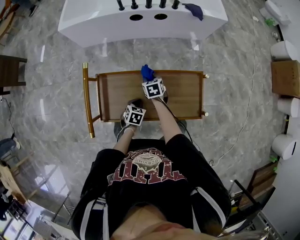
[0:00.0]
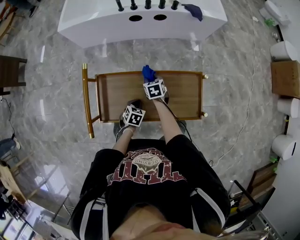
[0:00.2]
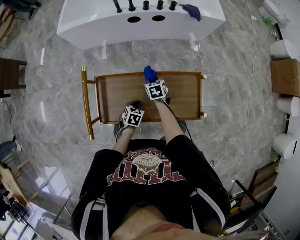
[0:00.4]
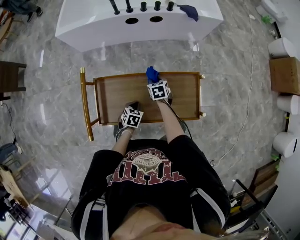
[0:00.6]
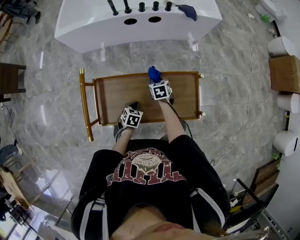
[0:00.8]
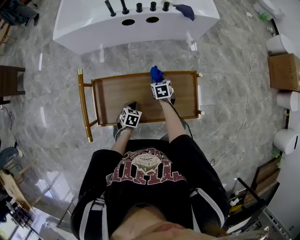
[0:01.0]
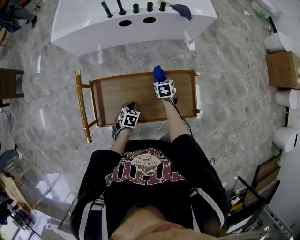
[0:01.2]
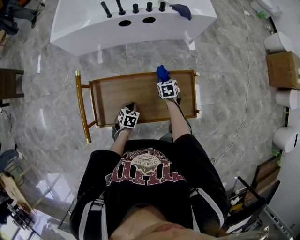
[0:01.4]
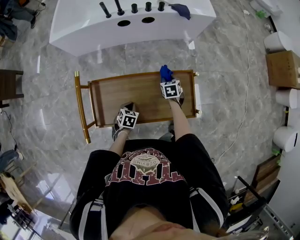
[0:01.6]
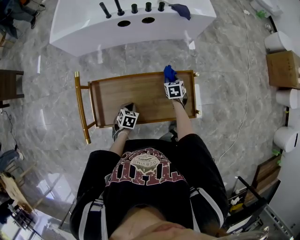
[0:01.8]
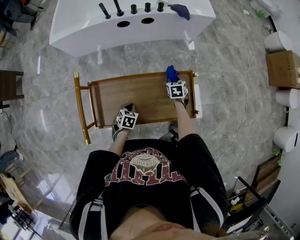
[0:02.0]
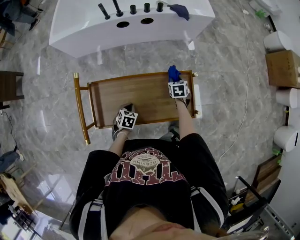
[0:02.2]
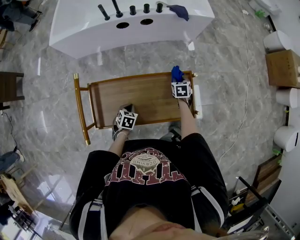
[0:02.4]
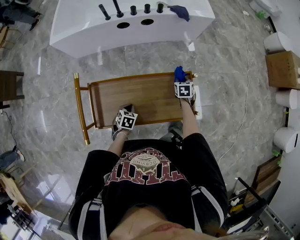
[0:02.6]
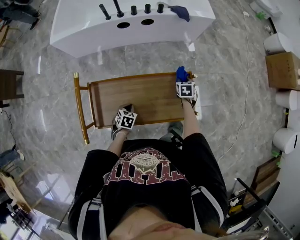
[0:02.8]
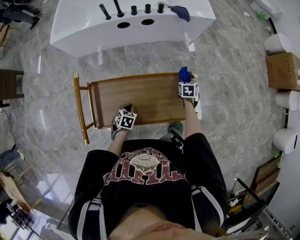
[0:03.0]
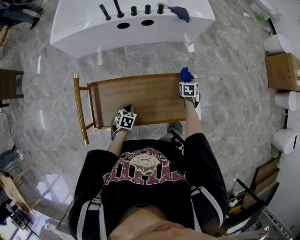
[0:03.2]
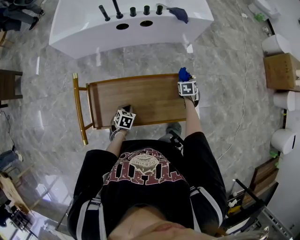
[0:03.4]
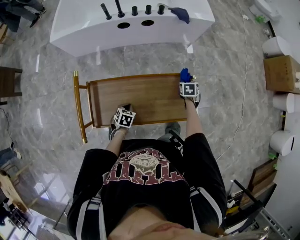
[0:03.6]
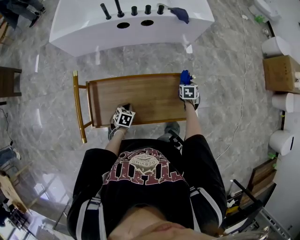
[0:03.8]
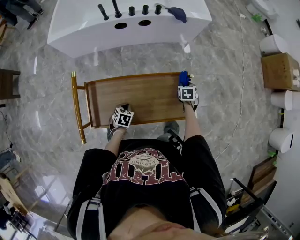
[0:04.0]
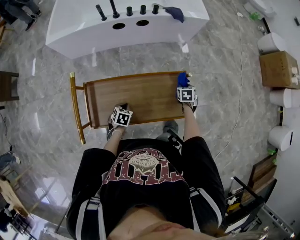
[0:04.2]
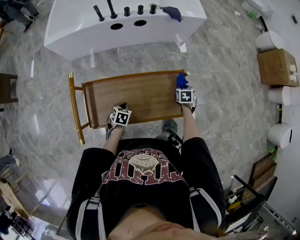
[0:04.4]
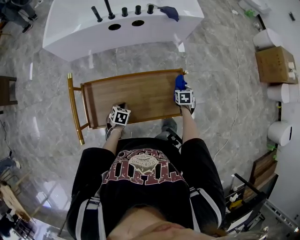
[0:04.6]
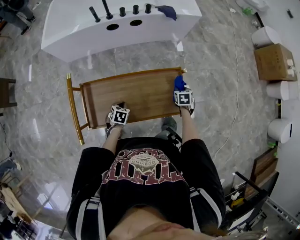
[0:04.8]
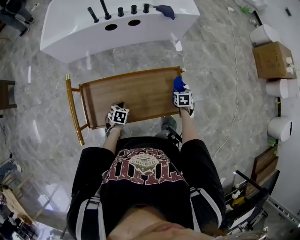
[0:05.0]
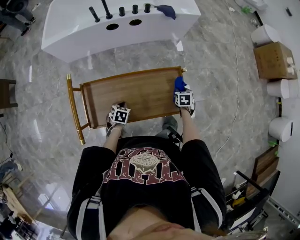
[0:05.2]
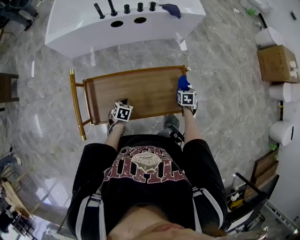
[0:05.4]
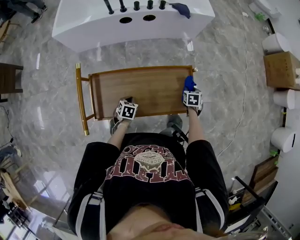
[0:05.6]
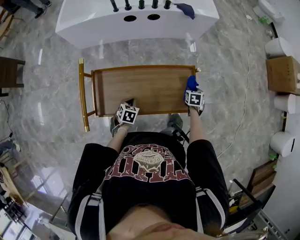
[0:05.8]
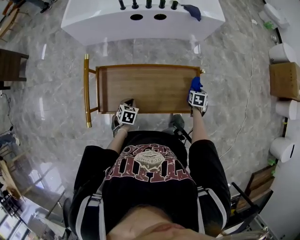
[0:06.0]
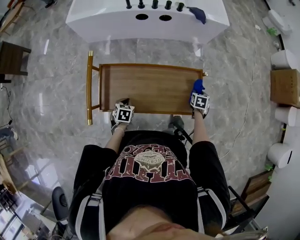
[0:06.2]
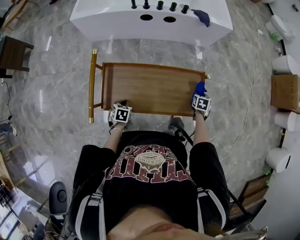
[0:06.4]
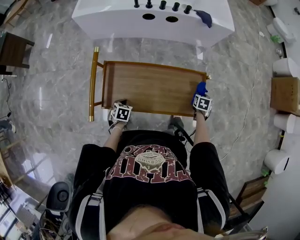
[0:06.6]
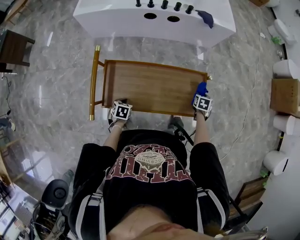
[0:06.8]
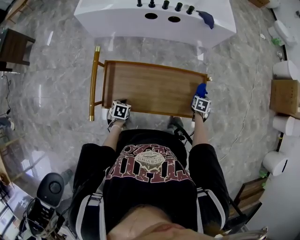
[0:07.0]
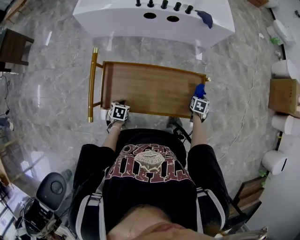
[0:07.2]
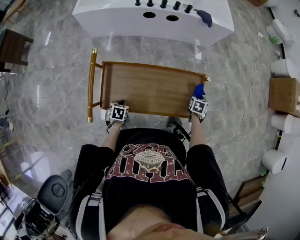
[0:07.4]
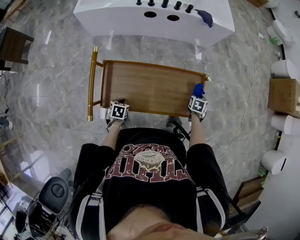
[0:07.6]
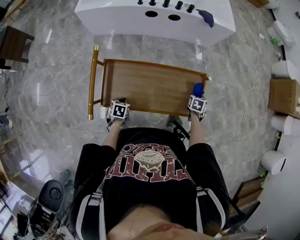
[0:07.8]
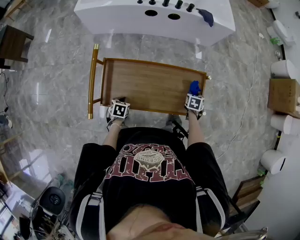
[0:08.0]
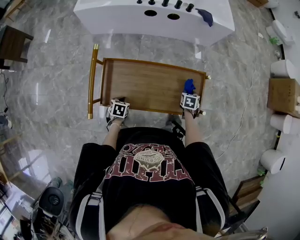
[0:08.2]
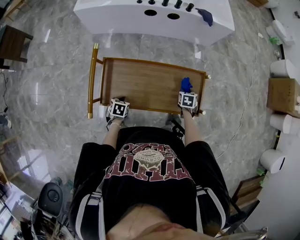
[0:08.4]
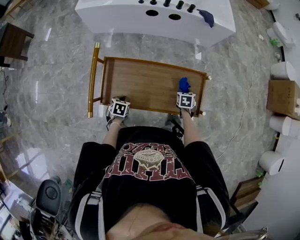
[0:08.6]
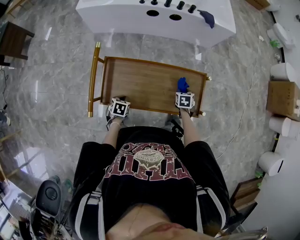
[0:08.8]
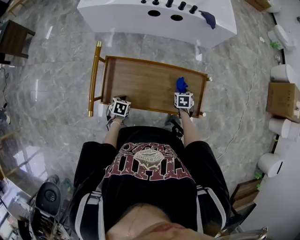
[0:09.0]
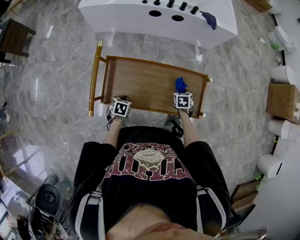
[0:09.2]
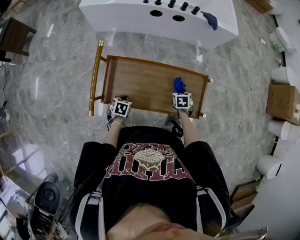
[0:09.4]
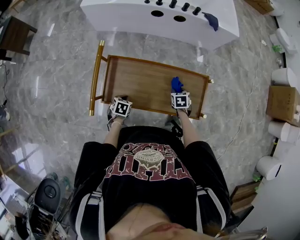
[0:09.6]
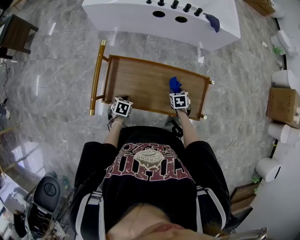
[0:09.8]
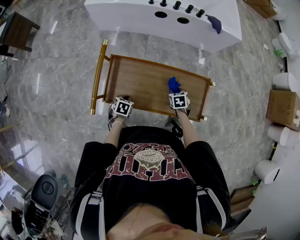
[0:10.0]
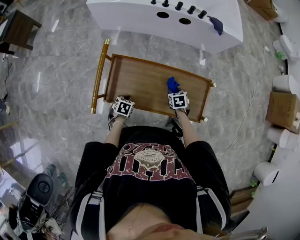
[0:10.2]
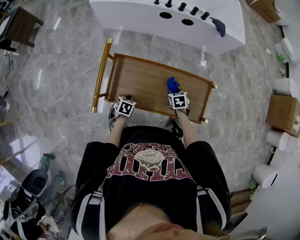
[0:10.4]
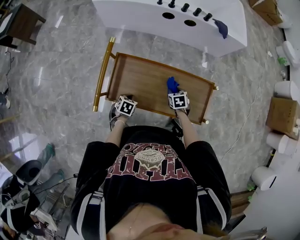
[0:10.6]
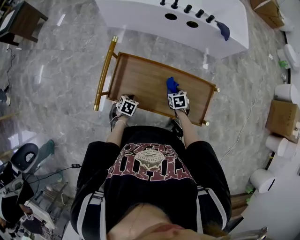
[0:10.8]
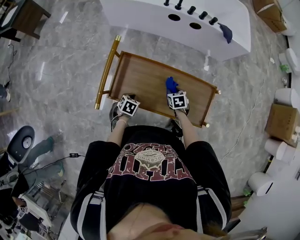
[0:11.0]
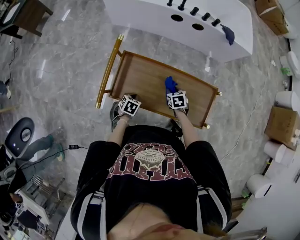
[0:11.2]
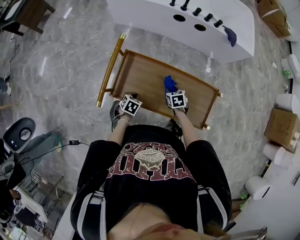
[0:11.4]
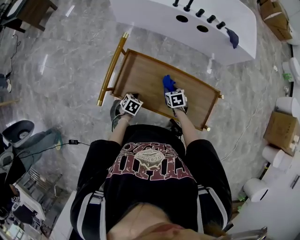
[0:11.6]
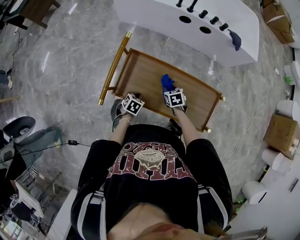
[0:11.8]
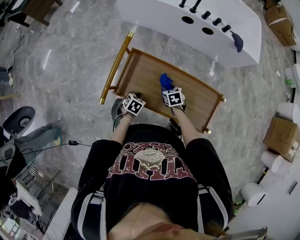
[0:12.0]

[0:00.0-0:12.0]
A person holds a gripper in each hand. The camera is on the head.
0:00.0 to 0:01.6: The right gripper shifts some 15 cm to the right.
0:01.6 to 0:03.0: The right gripper heads to the right, covering some 10 cm.
0:03.0 to 0:04.4: The right gripper ends up some 5 cm from where it was.
0:04.4 to 0:06.0: The left gripper goes roughly 5 cm backward.
0:06.0 to 0:07.6: The left gripper is displaced to the left and backward by roughly 10 cm.
0:07.6 to 0:09.0: The right gripper moves to the left, some 15 cm.
0:09.0 to 0:10.4: The right gripper is displaced to the left by about 10 cm.
0:10.4 to 0:12.0: The right gripper goes some 10 cm to the left.

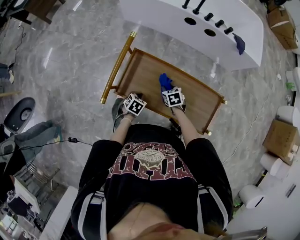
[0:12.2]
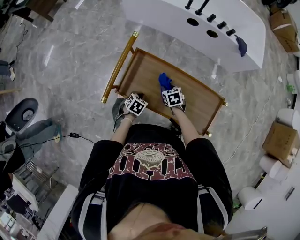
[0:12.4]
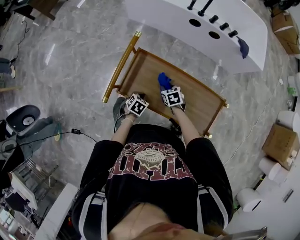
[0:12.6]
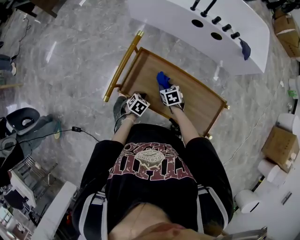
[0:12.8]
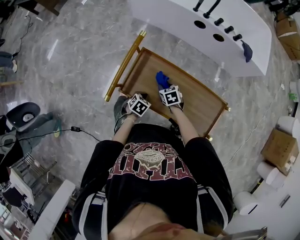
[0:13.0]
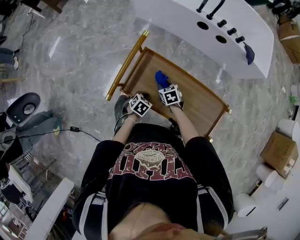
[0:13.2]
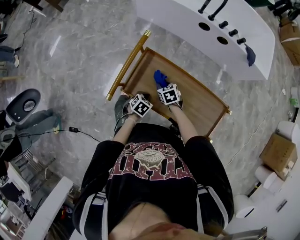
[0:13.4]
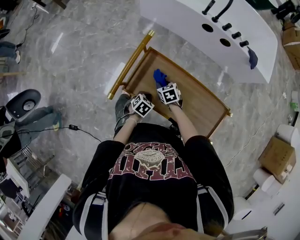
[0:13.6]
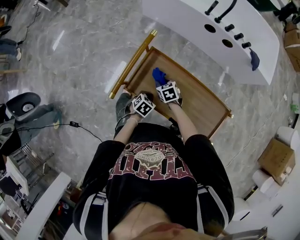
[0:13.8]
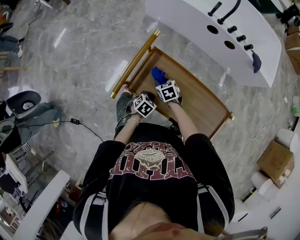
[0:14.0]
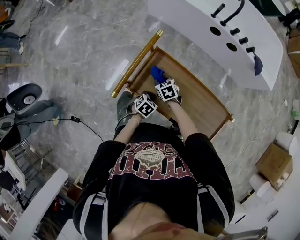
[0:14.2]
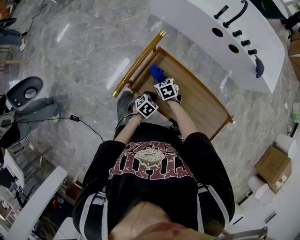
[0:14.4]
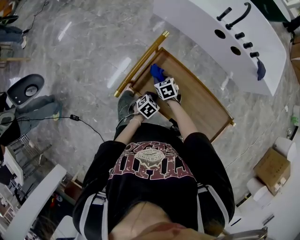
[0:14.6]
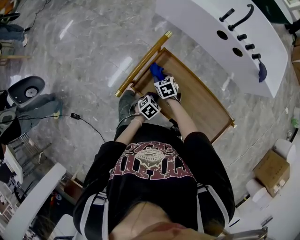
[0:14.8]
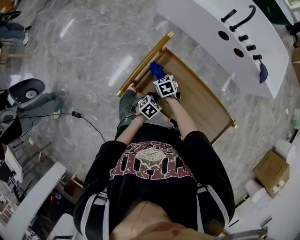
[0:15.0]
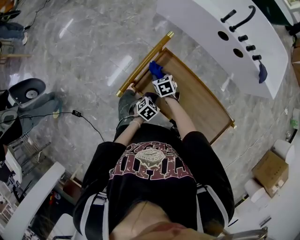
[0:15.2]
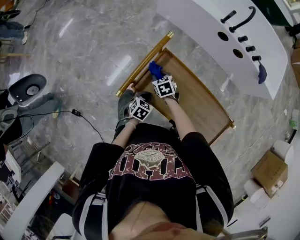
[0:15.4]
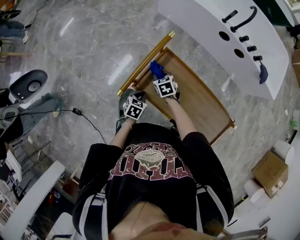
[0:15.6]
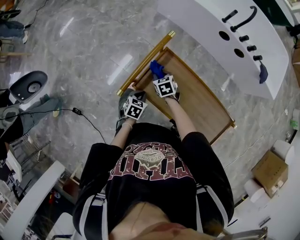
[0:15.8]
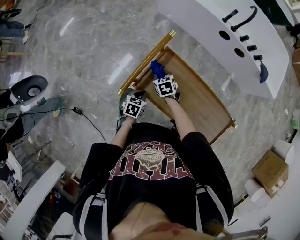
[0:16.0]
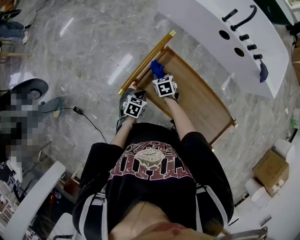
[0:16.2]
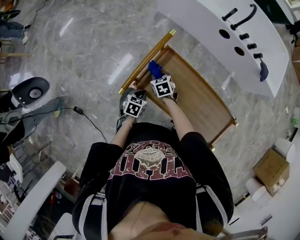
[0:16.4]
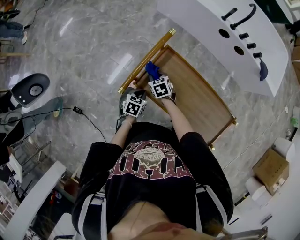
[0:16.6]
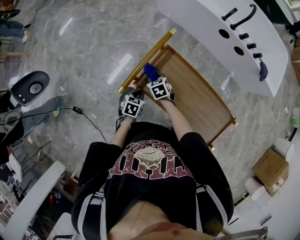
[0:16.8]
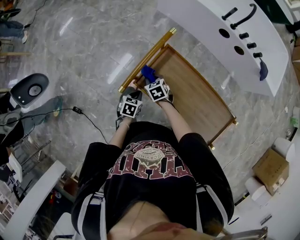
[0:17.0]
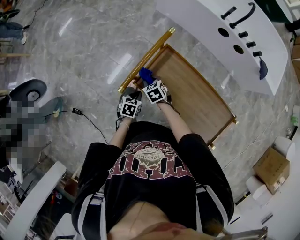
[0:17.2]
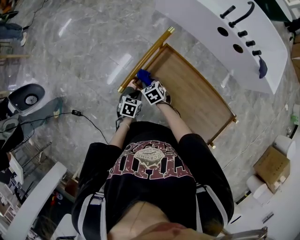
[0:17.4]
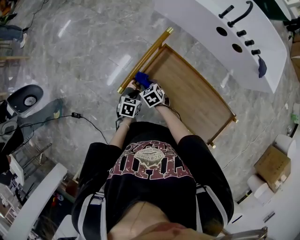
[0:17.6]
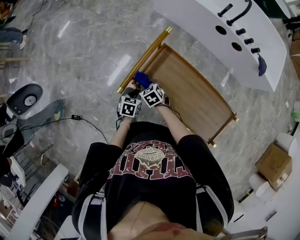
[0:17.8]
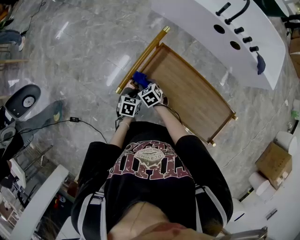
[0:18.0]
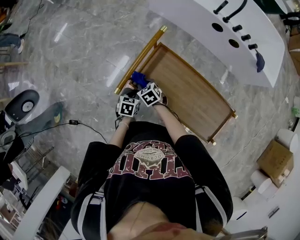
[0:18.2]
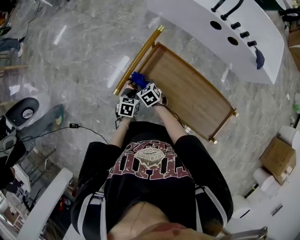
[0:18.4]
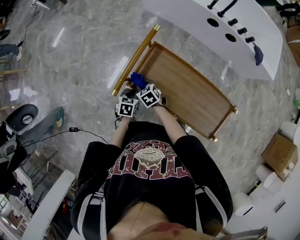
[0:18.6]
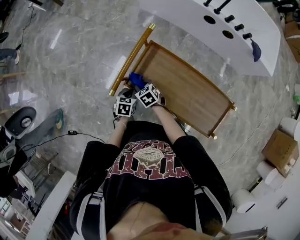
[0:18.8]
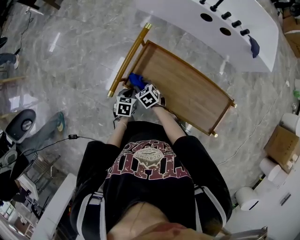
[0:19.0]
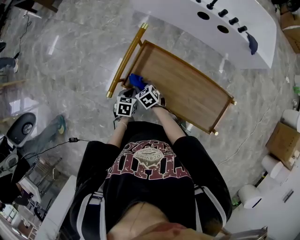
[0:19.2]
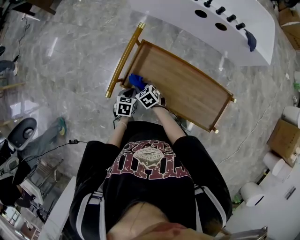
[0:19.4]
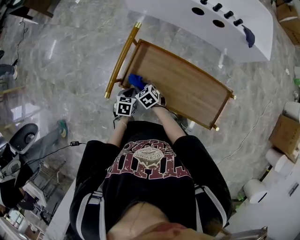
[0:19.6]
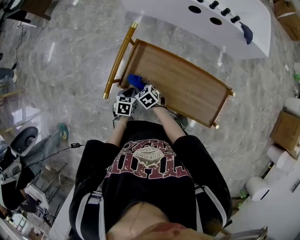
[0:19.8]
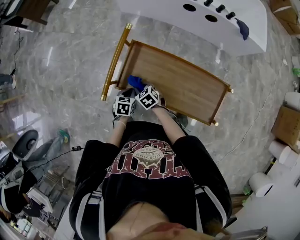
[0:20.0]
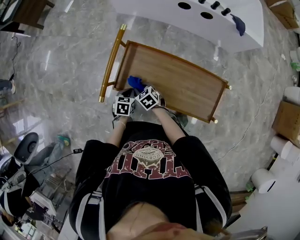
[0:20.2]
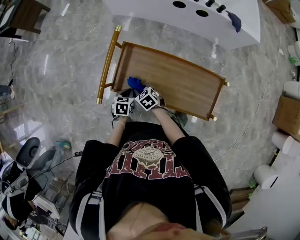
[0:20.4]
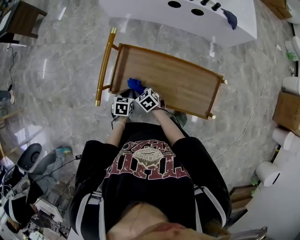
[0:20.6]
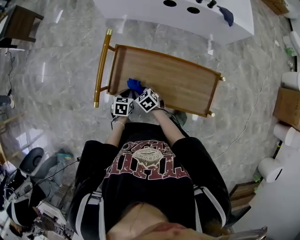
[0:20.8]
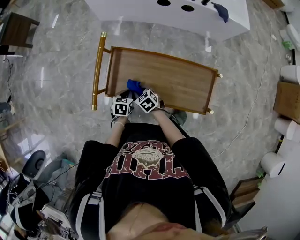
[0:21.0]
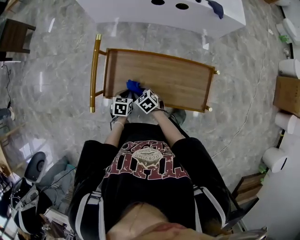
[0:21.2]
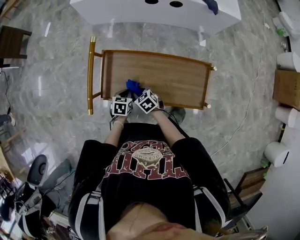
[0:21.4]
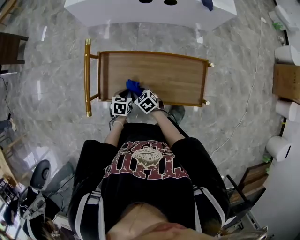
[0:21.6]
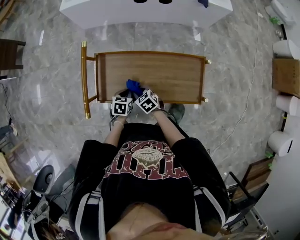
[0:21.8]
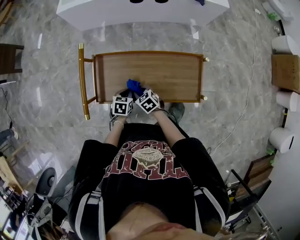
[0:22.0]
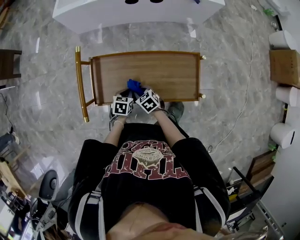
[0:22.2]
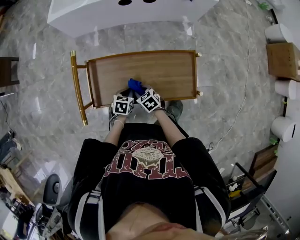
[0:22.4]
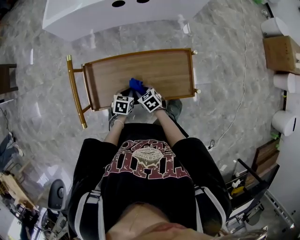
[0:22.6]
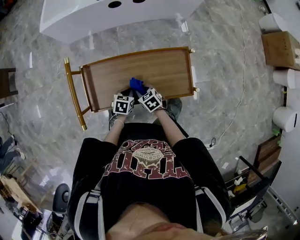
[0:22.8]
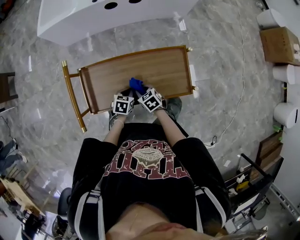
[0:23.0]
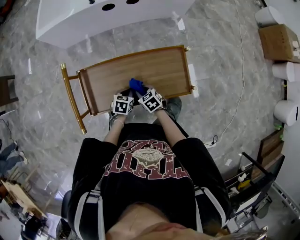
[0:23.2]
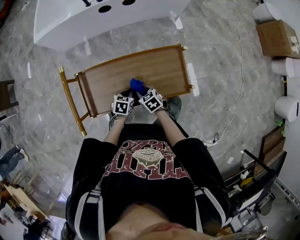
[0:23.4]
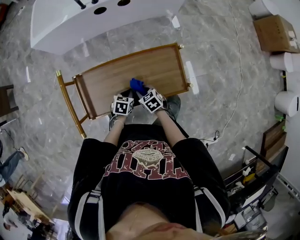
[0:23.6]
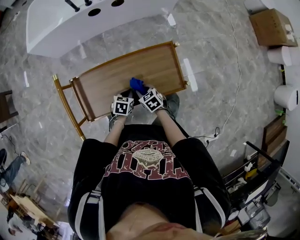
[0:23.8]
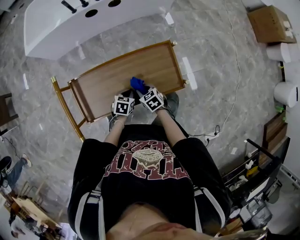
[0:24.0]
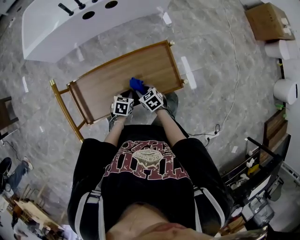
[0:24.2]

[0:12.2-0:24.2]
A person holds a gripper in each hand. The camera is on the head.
0:12.2 to 0:13.8: The right gripper moves to the left, about 10 cm.
0:13.8 to 0:15.2: The right gripper moves to the left, some 10 cm.
0:15.2 to 0:16.6: The left gripper heads to the left, covering some 10 cm, and changes its angle by roughly 20 degrees.
0:16.6 to 0:18.2: The right gripper is displaced backward by roughly 5 cm.
0:18.2 to 0:19.8: The right gripper is displaced to the right by roughly 5 cm.
0:19.8 to 0:21.2: The grippers both shift to the right by some 10 cm.
0:21.2 to 0:22.6: The two grippers go about 10 cm to the right.
0:22.6 to 0:24.2: Both grippers move to the right, about 10 cm.
